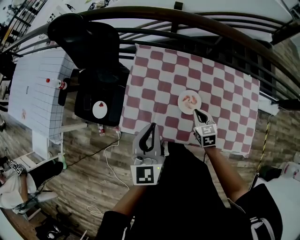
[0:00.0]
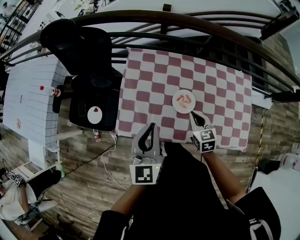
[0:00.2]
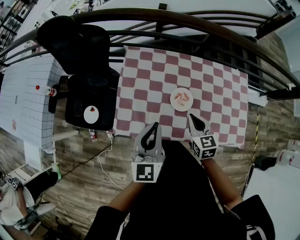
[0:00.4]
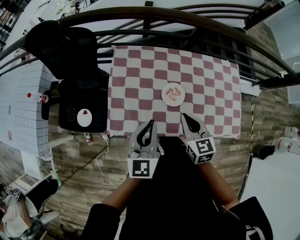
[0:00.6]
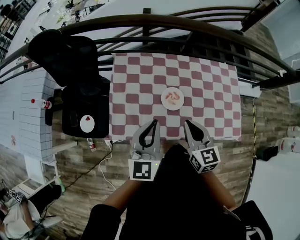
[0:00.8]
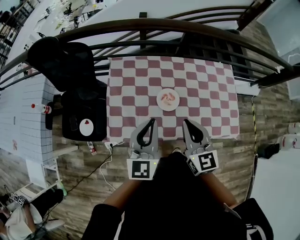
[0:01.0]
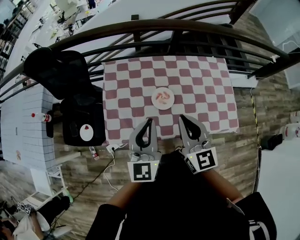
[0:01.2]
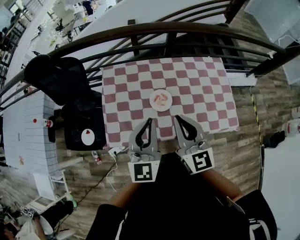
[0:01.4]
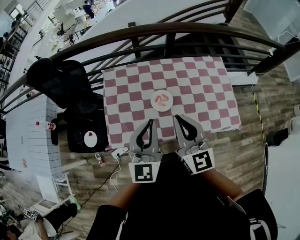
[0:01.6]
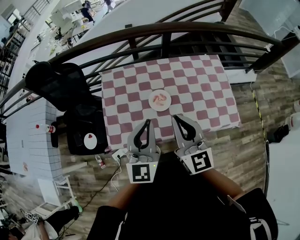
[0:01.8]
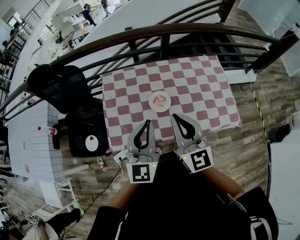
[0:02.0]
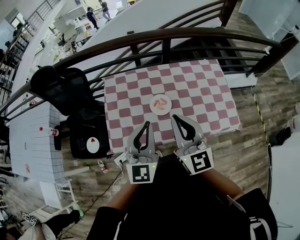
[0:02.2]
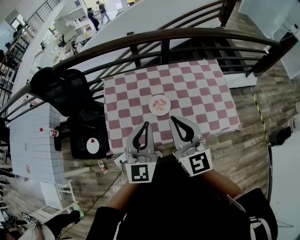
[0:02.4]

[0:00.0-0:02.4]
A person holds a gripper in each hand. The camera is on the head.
0:00.0 to 0:01.2: The right gripper goes about 25 cm upward, and angles its fingers upward, by some 30 degrees, while the left gripper goes approximately 10 cm to the right and upward, and swivels some 20 degrees.
0:01.2 to 0:02.4: The right gripper shifts by some 5 cm.

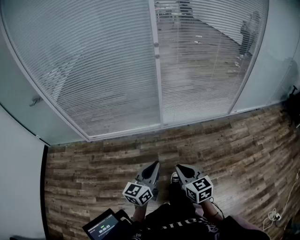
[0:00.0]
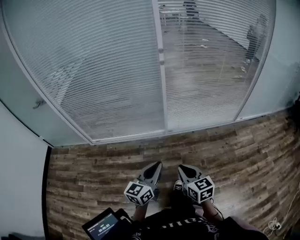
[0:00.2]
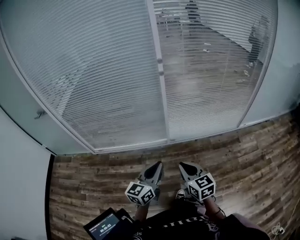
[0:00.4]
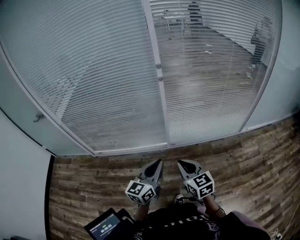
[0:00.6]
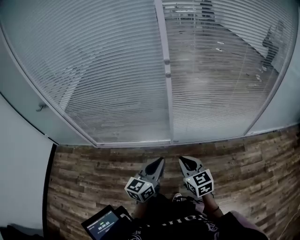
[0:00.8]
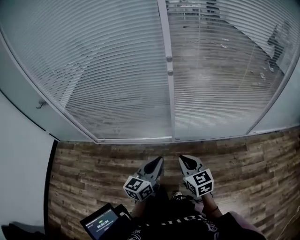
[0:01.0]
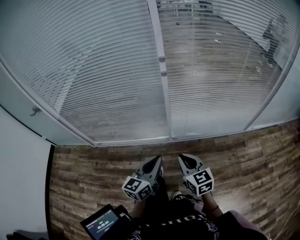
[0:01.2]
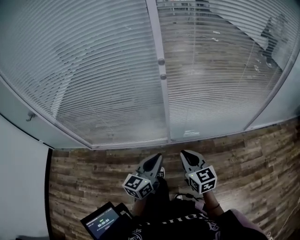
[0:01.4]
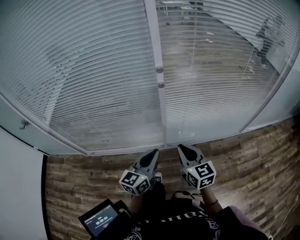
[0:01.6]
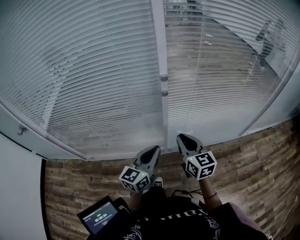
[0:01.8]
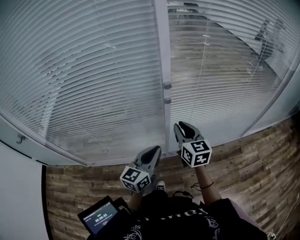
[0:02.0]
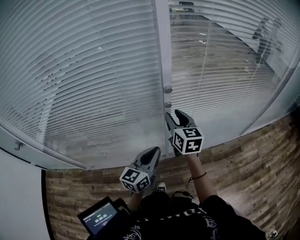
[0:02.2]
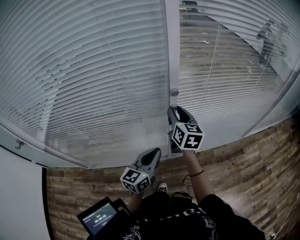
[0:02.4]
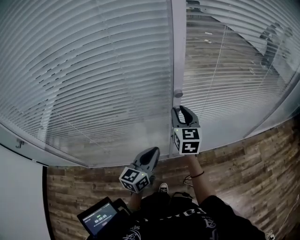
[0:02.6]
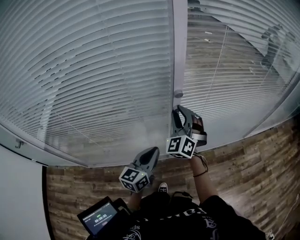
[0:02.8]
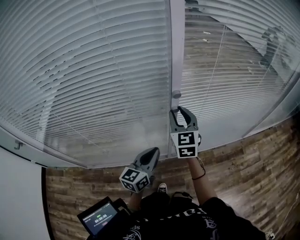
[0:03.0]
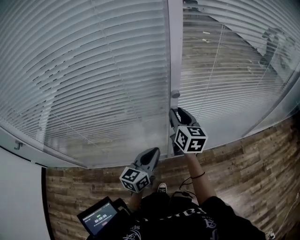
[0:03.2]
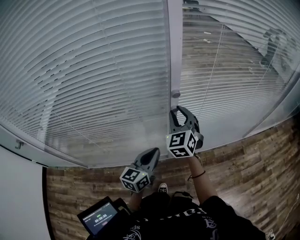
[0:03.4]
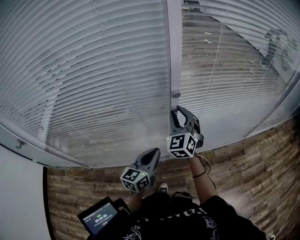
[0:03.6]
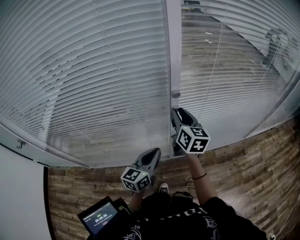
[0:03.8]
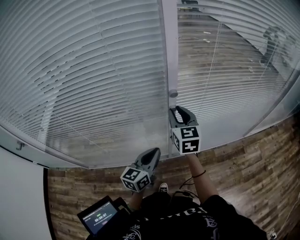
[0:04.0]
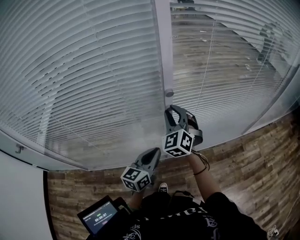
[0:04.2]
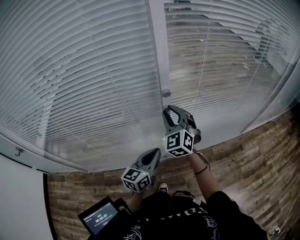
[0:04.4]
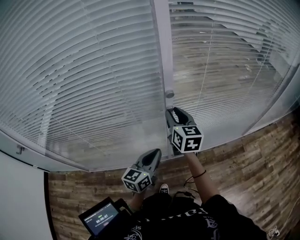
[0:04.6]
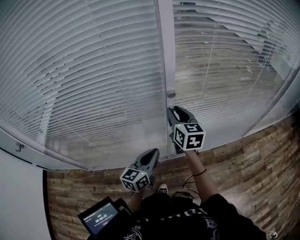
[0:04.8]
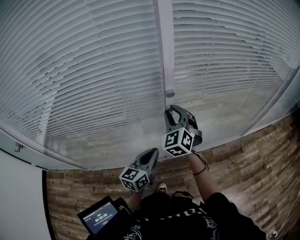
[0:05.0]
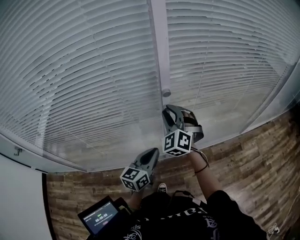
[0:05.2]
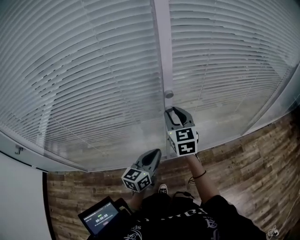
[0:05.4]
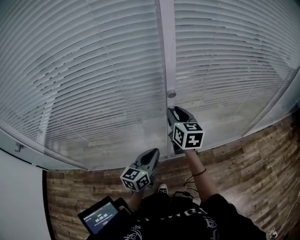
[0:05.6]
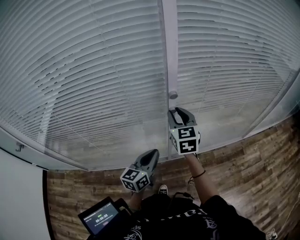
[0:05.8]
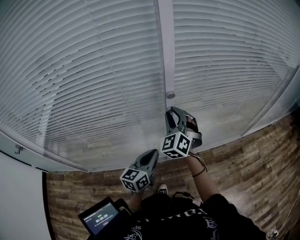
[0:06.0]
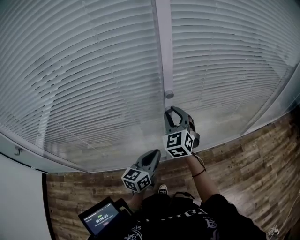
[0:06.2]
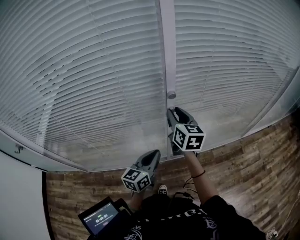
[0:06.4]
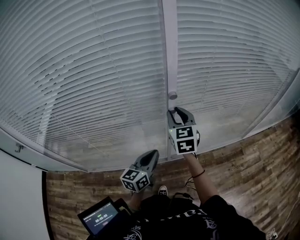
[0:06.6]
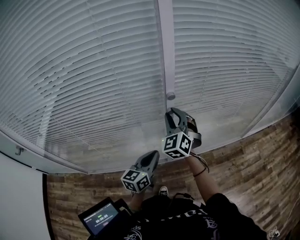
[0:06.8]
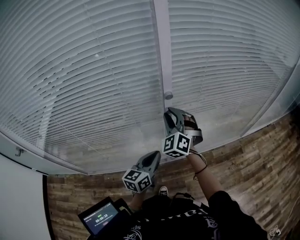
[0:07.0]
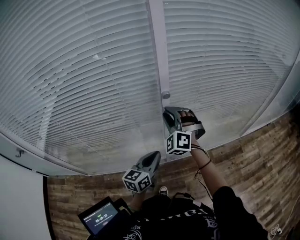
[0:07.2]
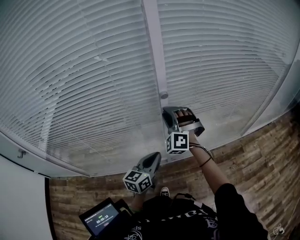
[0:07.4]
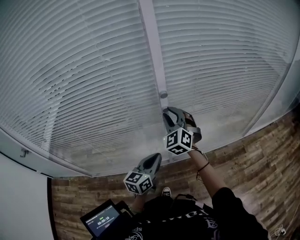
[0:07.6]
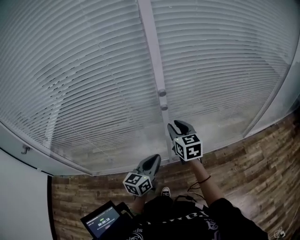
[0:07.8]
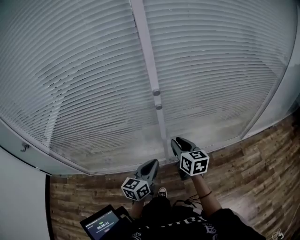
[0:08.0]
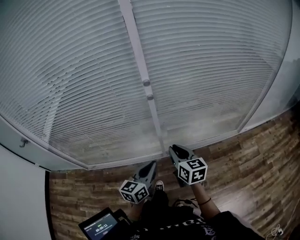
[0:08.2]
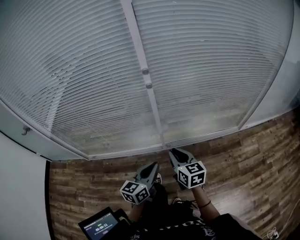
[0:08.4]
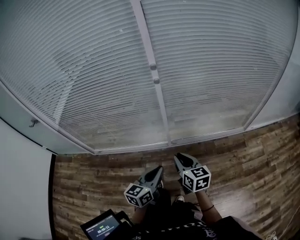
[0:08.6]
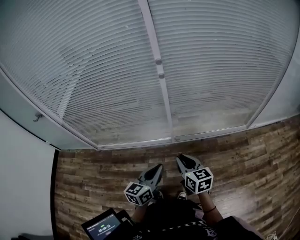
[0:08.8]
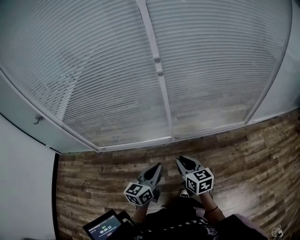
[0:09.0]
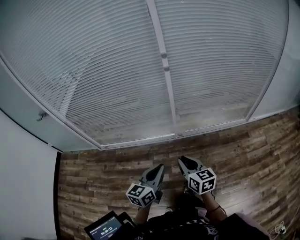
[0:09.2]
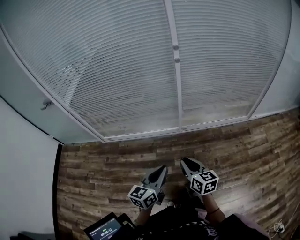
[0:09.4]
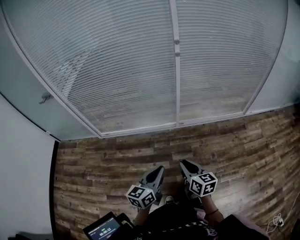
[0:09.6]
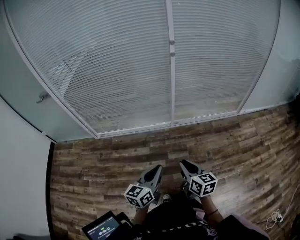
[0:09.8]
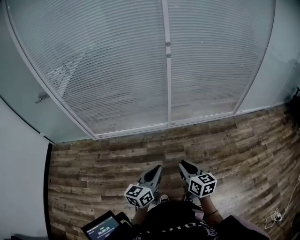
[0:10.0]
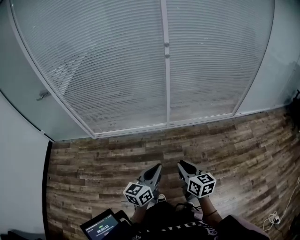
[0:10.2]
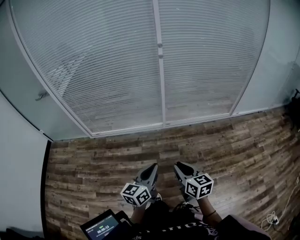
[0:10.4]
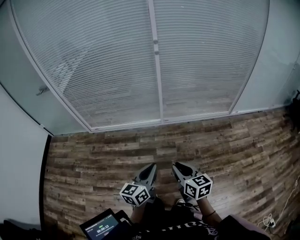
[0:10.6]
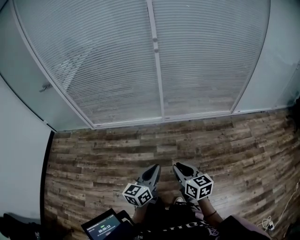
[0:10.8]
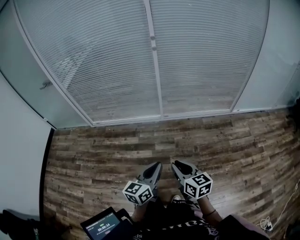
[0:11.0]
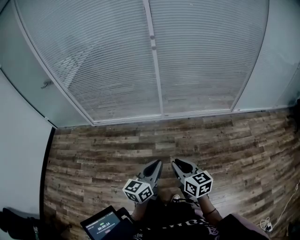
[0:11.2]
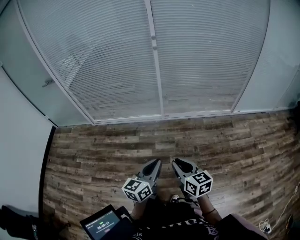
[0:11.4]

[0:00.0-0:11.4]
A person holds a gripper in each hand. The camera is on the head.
0:00.0 to 0:01.4: The two grippers go about 40 cm forward.
0:01.4 to 0:02.8: The right gripper heads forward, covering approximately 35 cm, rotates around the line of its fingers by roughly 50 degrees, counterclockwise from behind, and opens its fingers, while the left gripper moves forward and to the left, about 25 cm.
0:04.2 to 0:05.6: The right gripper rotates around the line of its fingers by some 60 degrees, clockwise from behind.
0:05.6 to 0:07.2: The right gripper rolls counterclockwise, seen from behind, by approximately 80 degrees.
0:07.2 to 0:08.6: Both grippers move backward and to the right, some 35 cm. The right gripper rotates around the line of its fingers by about 80 degrees, clockwise from behind.
0:08.6 to 0:10.0: The left gripper heads backward and to the left, covering about 40 cm; the right gripper goes approximately 40 cm backward.
0:10.0 to 0:11.4: The grippers both shift to the right and backward by roughly 25 cm.

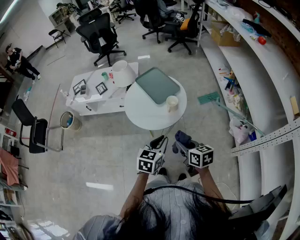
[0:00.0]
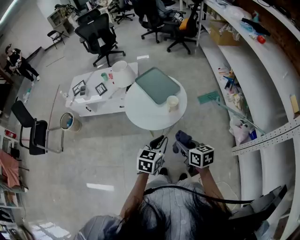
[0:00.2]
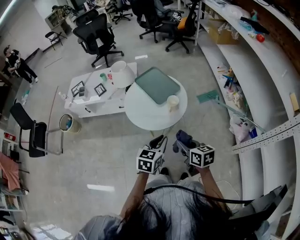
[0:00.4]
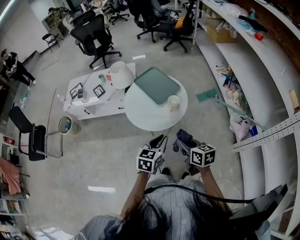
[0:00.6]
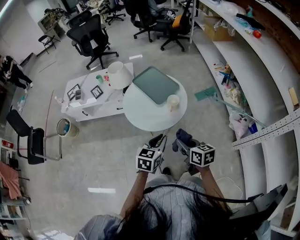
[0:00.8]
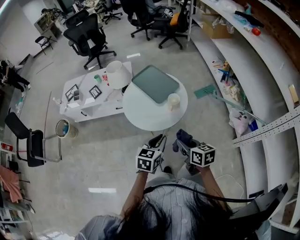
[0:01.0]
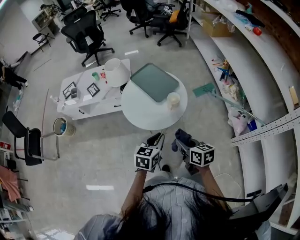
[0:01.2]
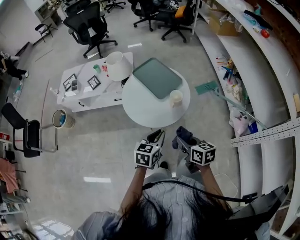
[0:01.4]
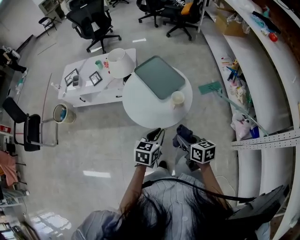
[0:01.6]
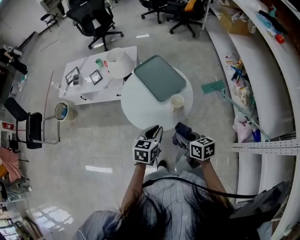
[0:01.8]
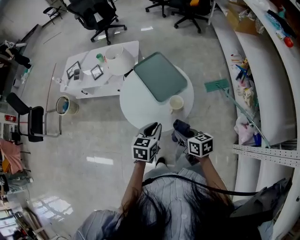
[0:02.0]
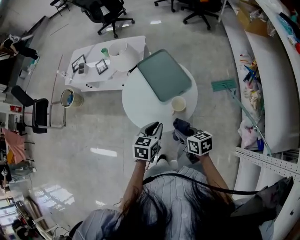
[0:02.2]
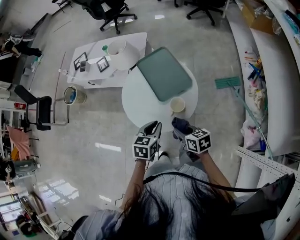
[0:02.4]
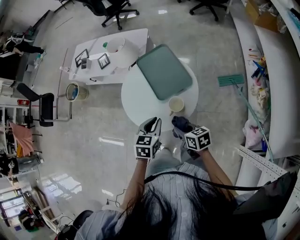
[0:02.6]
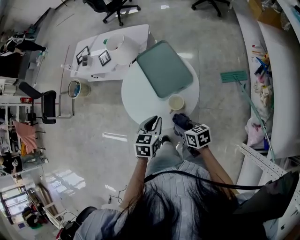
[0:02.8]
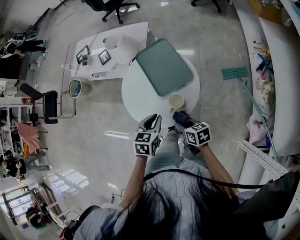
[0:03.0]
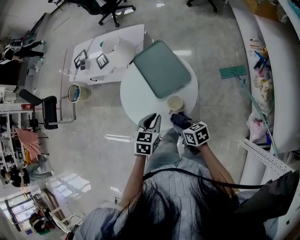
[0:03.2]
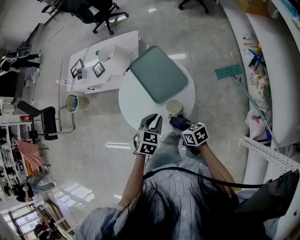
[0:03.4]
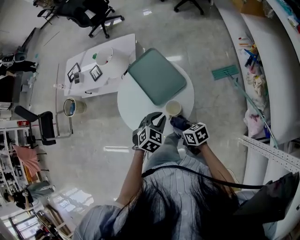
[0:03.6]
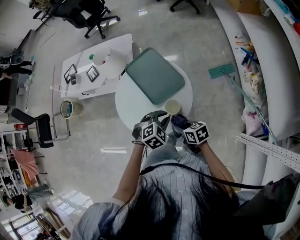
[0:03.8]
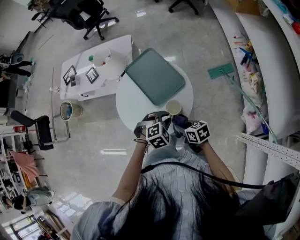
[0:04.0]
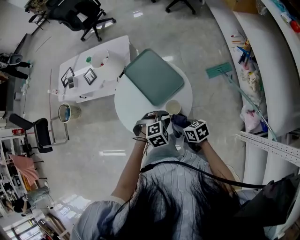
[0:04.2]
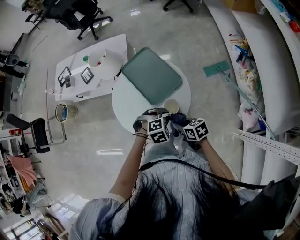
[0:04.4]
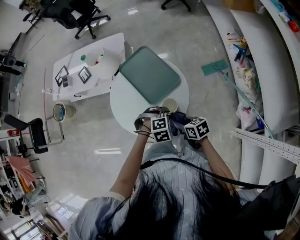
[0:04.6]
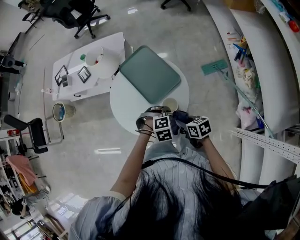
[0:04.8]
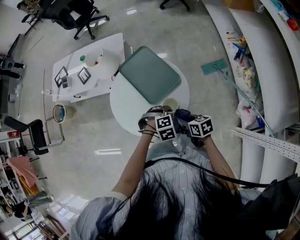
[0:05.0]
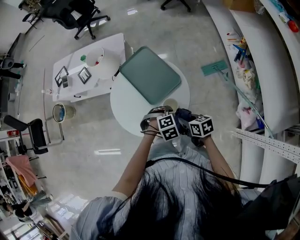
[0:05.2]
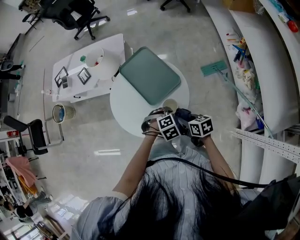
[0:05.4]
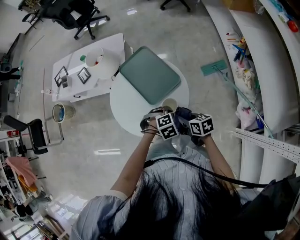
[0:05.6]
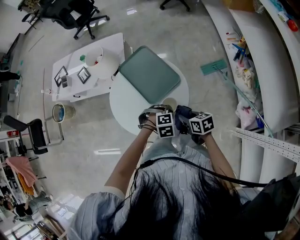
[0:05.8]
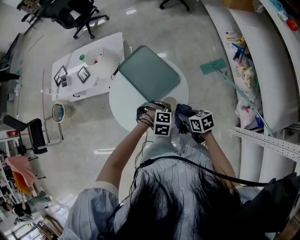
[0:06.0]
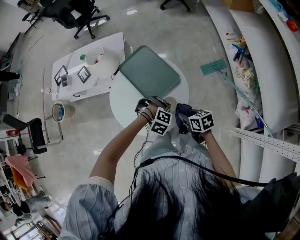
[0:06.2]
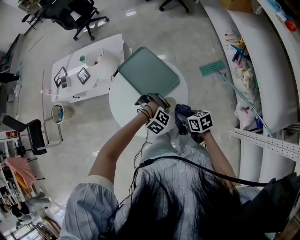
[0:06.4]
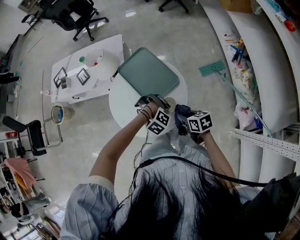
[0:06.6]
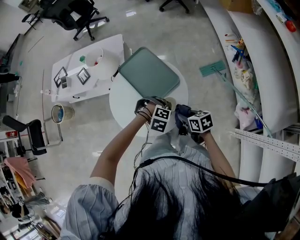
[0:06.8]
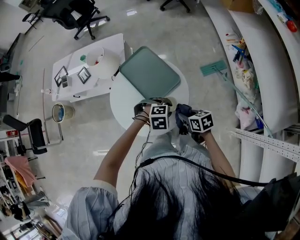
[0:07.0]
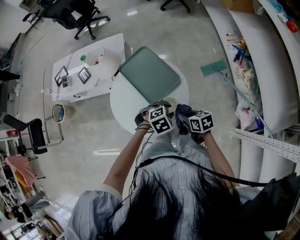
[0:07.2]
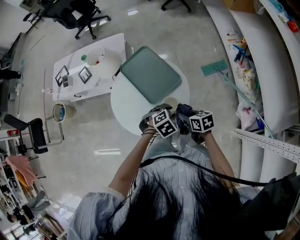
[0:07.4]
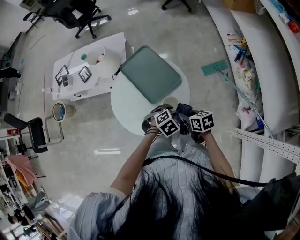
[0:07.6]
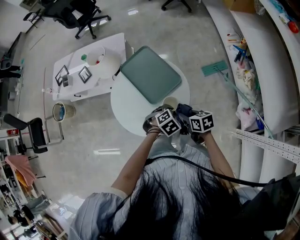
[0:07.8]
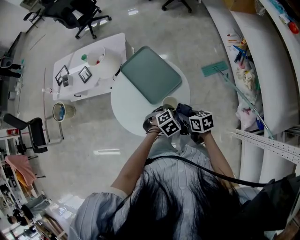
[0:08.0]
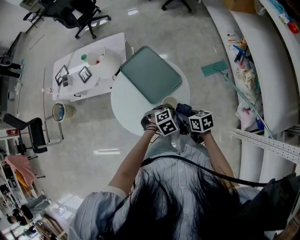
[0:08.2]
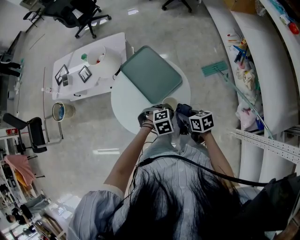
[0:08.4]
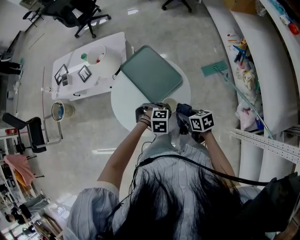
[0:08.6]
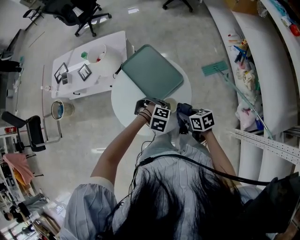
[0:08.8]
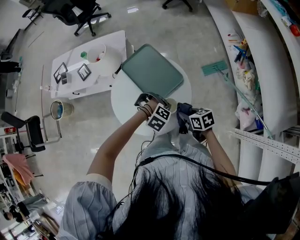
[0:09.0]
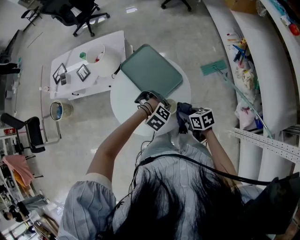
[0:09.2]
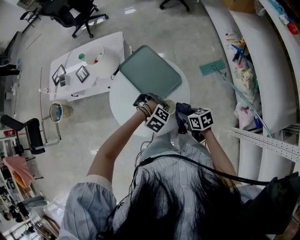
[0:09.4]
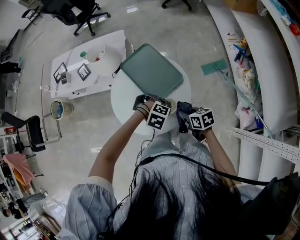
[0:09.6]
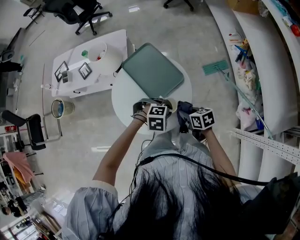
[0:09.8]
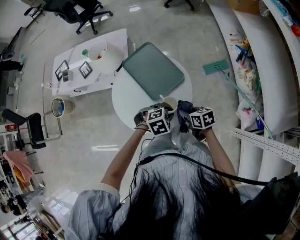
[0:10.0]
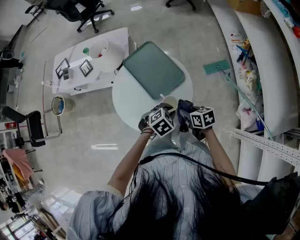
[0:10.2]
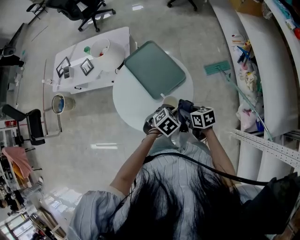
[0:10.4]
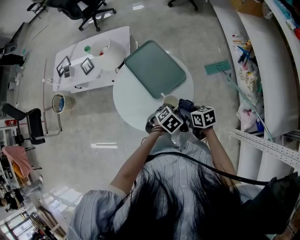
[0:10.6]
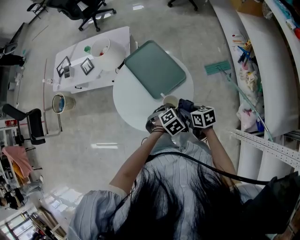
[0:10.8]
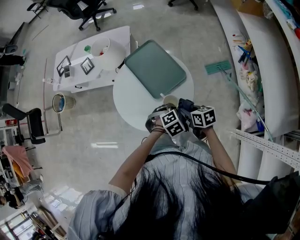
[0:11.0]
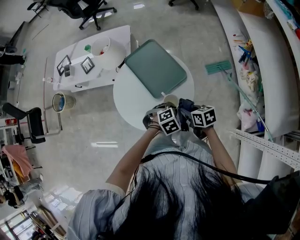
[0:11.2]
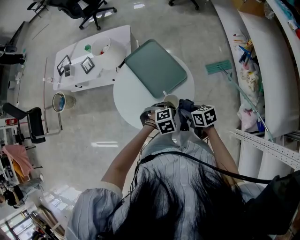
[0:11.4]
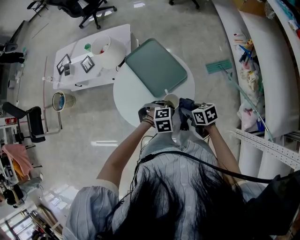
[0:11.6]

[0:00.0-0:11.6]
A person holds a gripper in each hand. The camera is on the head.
0:00.0 to 0:01.4: The right gripper shifts by some 5 cm, while the left gripper moves forward, some 5 cm.
0:01.4 to 0:02.8: The left gripper moves about 15 cm, and turns by approximately 20 degrees; the right gripper shifts by roughly 20 cm, and changes its angle by roughly 30 degrees.
0:02.8 to 0:04.4: The left gripper goes about 10 cm downward and to the right, and twists roughly 70 degrees clockwise, seen from behind.
0:04.4 to 0:05.8: The right gripper moves some 5 cm.
0:07.2 to 0:08.8: The left gripper moves some 5 cm, and turns by approximately 40 degrees.
0:08.8 to 0:10.2: The left gripper ends up roughly 5 cm from where it was, and rolls counterclockwise, seen from behind, by roughly 50 degrees.
0:10.2 to 0:11.6: The left gripper turns by about 30 degrees.
